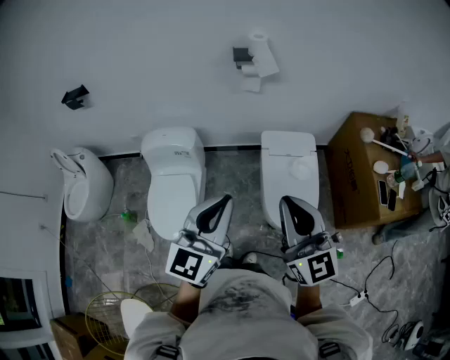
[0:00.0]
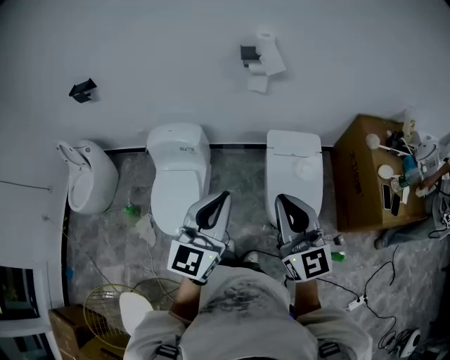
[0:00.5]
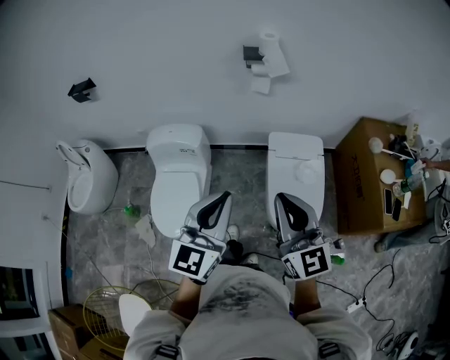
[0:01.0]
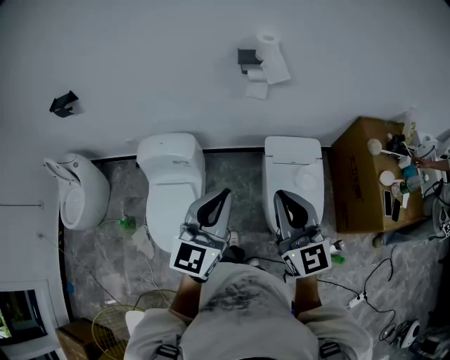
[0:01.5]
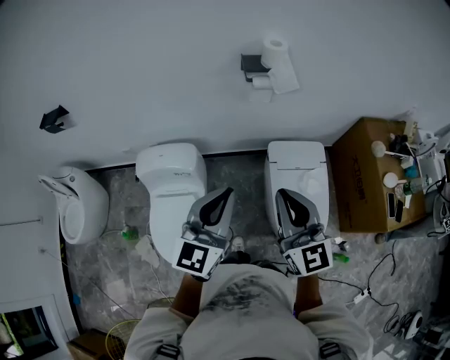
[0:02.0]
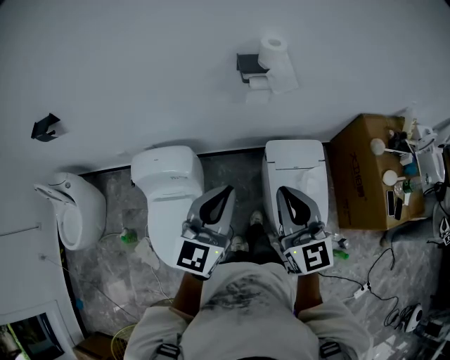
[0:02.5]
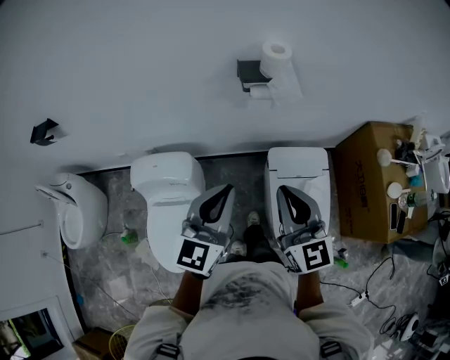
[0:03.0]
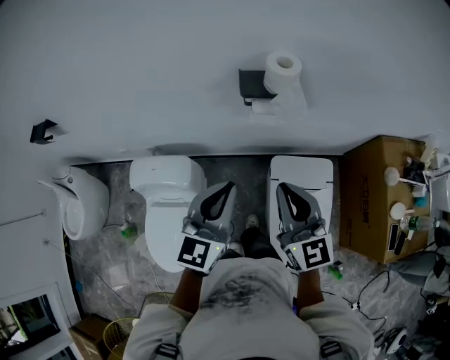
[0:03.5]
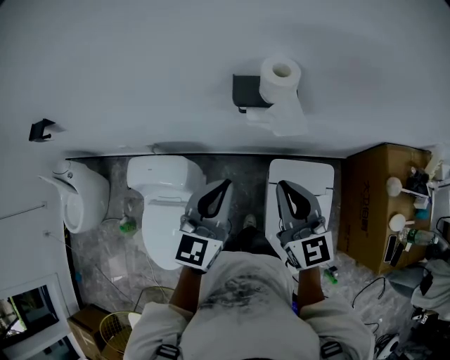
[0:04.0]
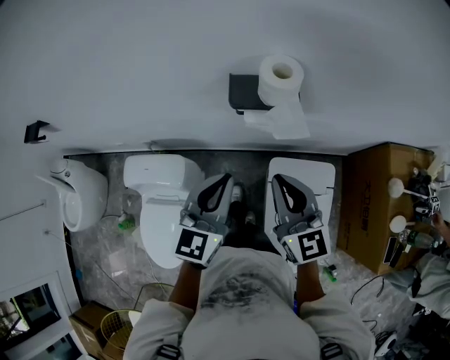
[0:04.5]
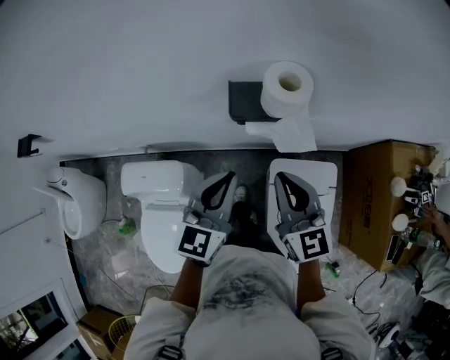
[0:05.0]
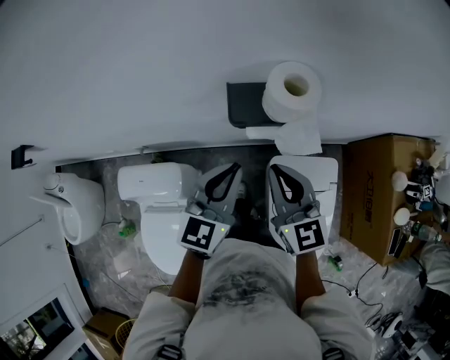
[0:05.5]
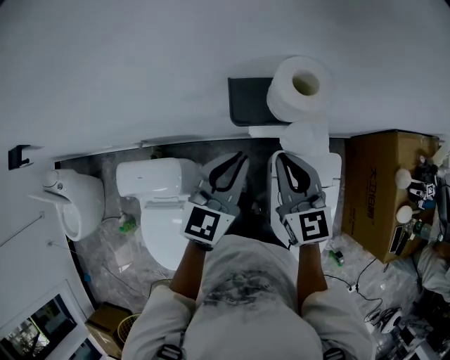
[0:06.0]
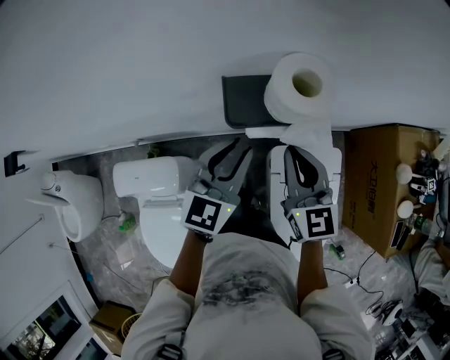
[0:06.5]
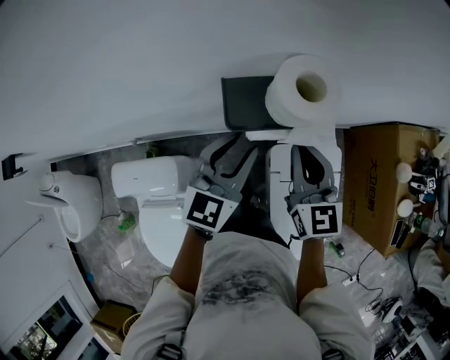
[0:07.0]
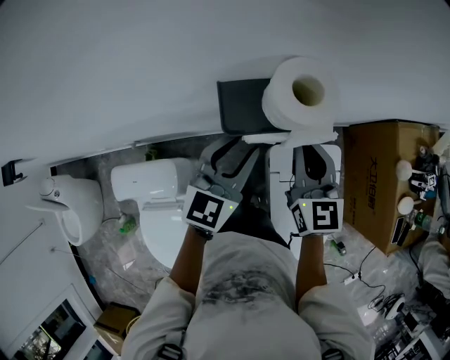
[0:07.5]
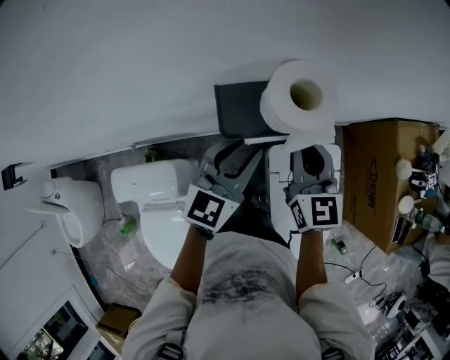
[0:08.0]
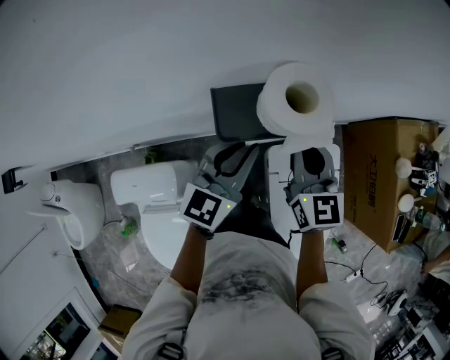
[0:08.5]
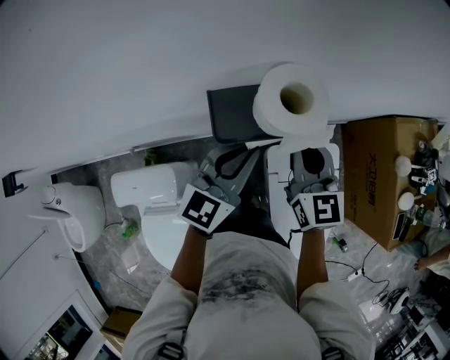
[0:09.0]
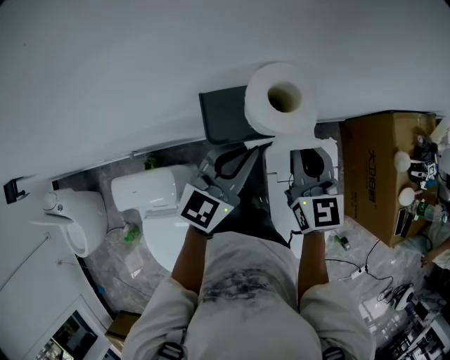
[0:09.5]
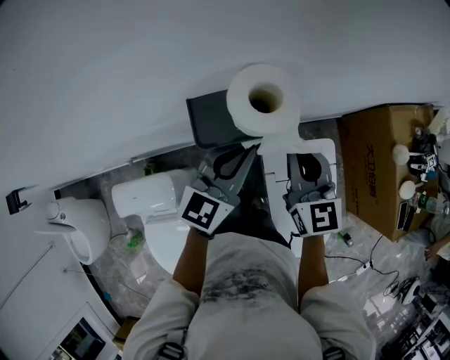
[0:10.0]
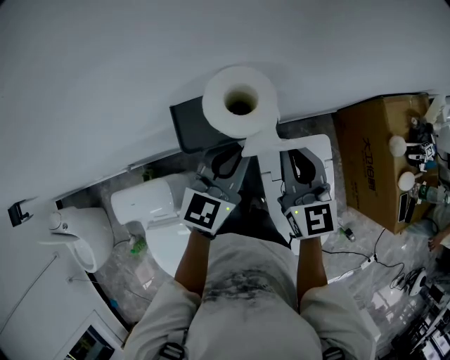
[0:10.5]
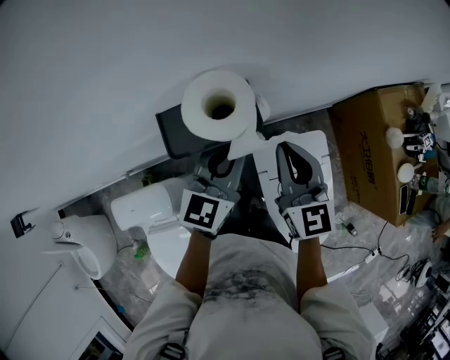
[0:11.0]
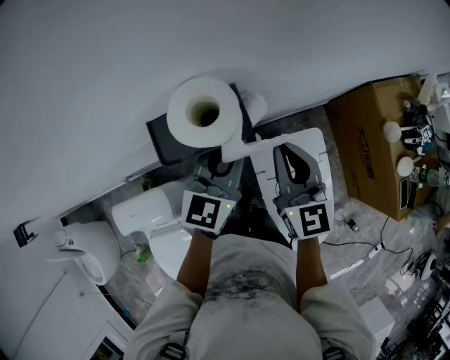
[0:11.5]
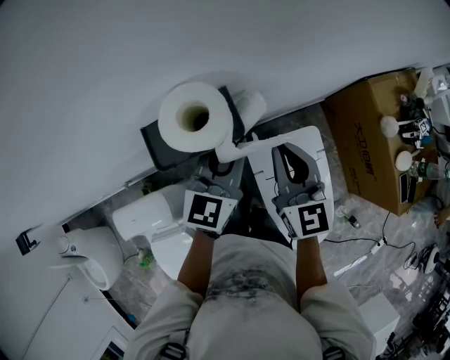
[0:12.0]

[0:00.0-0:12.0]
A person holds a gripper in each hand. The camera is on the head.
0:00.0 to 0:02.0: The grippers both shift forward by some 20 cm.
0:02.0 to 0:04.0: Both grippers move forward, some 25 cm.
0:04.0 to 0:06.0: Both grippers travel together forward and downward, some 15 cm.
0:06.0 to 0:08.0: Both grippers travel together forward, some 5 cm. The left gripper opens.
0:08.0 to 0:10.0: The left gripper closes.
0:10.0 to 0:12.0: The left gripper travels to the right by some 5 cm.

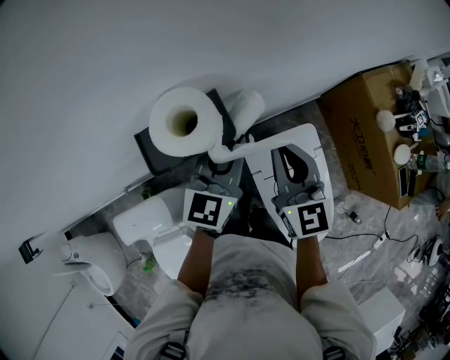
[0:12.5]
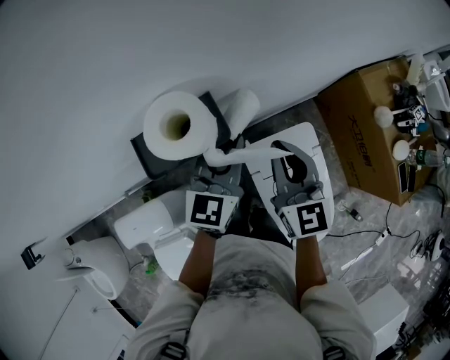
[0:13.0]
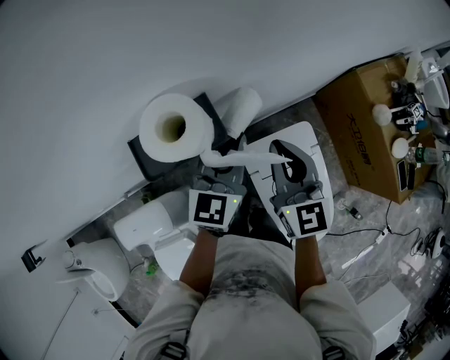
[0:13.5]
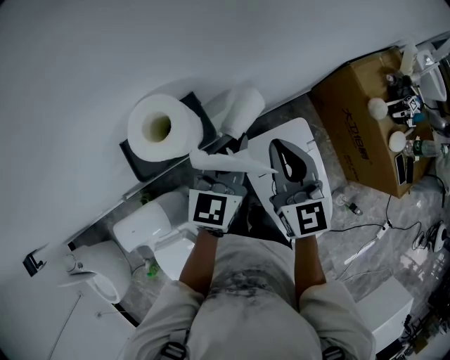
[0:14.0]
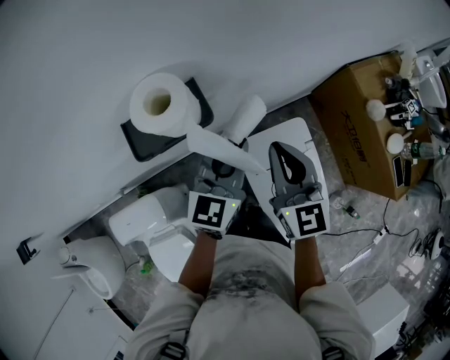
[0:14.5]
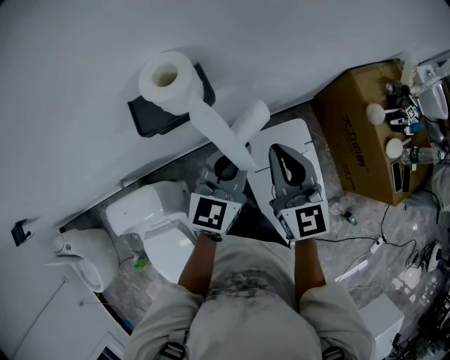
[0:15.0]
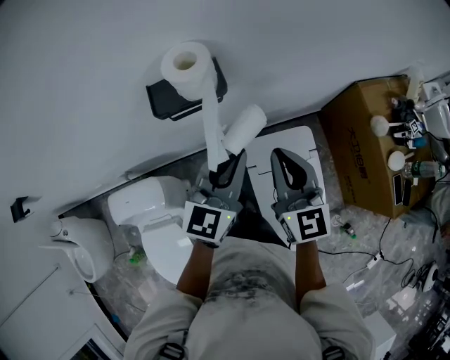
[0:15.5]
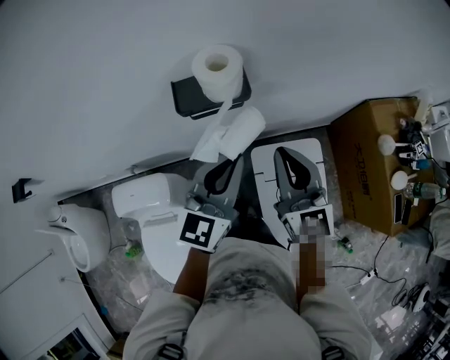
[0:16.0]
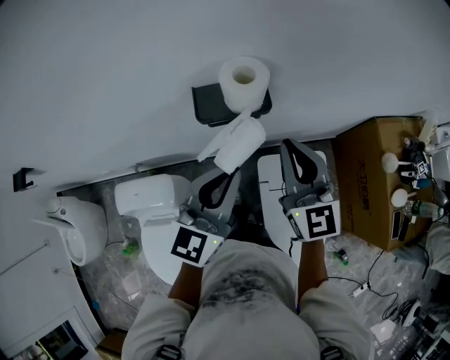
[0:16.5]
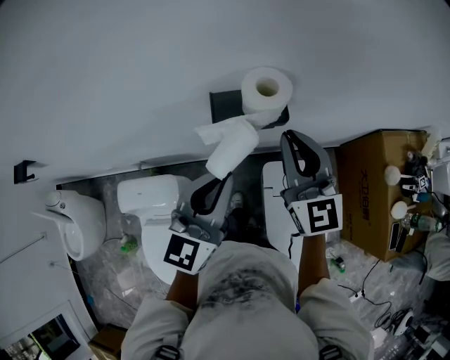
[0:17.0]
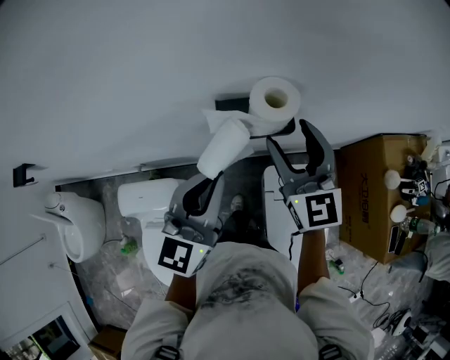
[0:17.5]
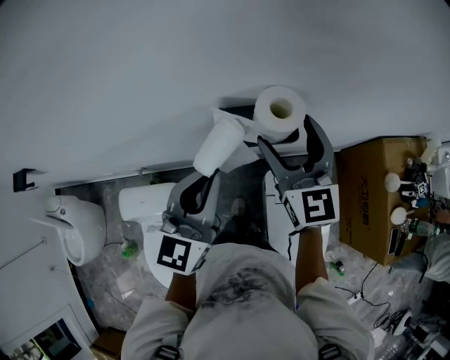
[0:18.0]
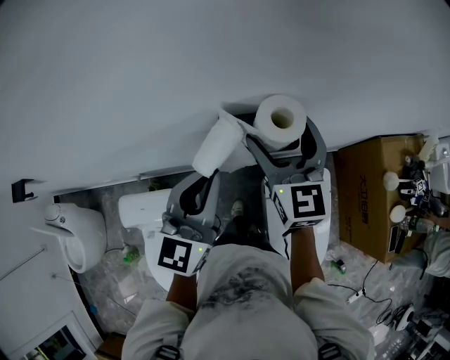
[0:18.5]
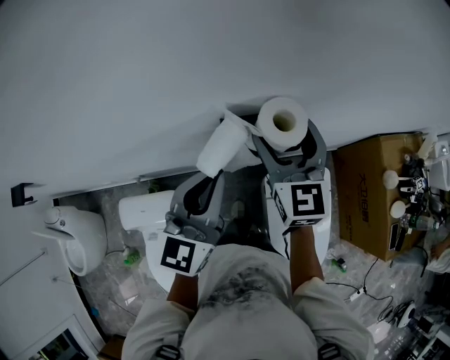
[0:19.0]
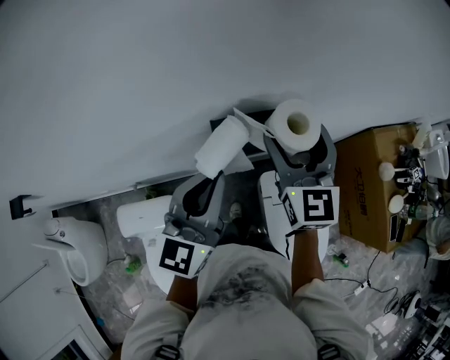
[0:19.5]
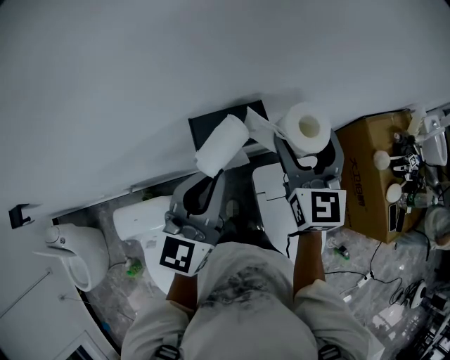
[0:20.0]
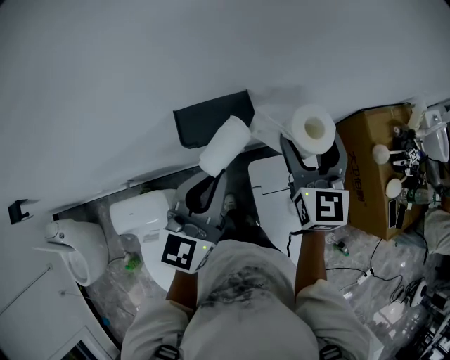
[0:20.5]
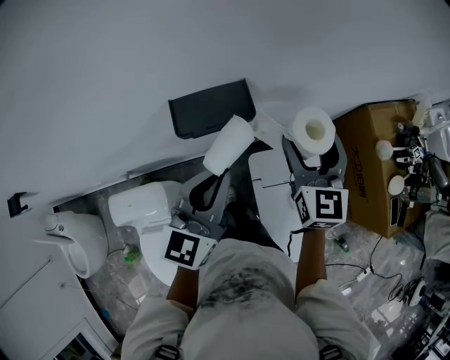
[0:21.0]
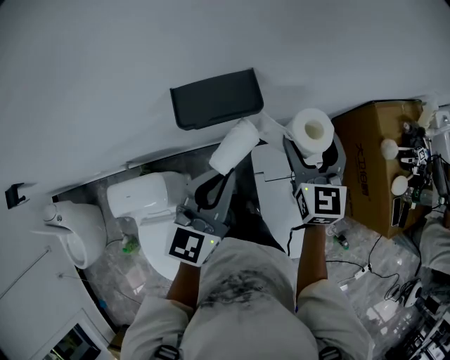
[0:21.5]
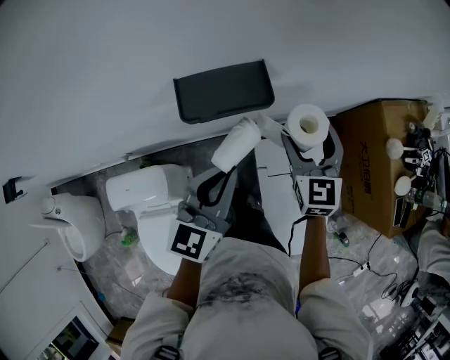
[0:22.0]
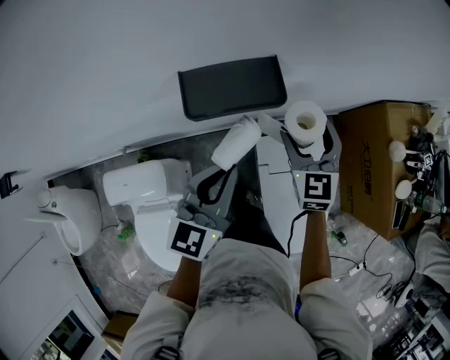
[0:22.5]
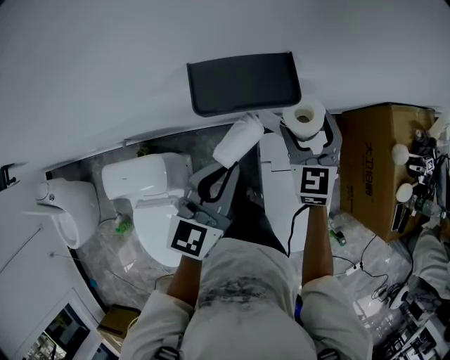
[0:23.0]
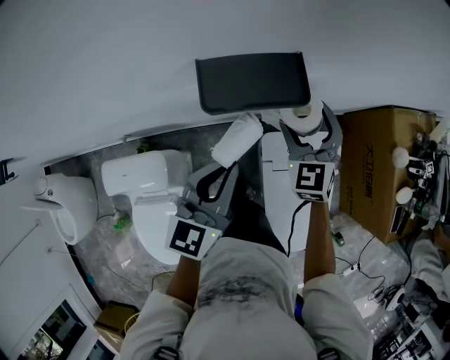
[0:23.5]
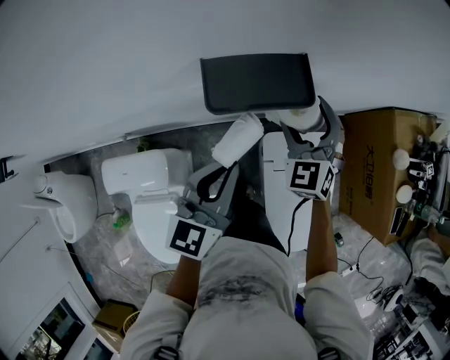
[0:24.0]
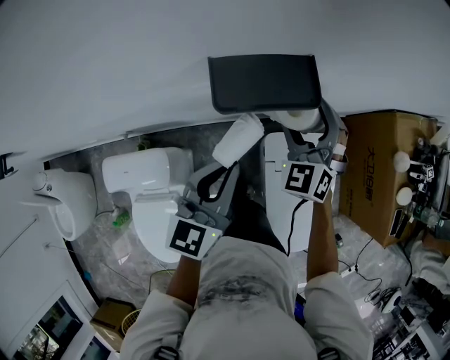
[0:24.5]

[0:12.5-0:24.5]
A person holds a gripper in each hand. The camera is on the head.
0:12.5 to 0:14.5: The right gripper changes place by some 5 cm. Meanwhile the left gripper changes place by roughly 5 cm.
0:14.5 to 0:16.5: The right gripper is displaced upward and to the left by approximately 10 cm, and swivels some 20 degrees. Meanwhile the left gripper shifts roughly 20 cm to the left, backward and upward.
0:16.5 to 0:18.5: The right gripper travels forward and to the left by about 15 cm, and opens up, while the left gripper is displaced to the left and forward by some 10 cm.
0:18.5 to 0:20.5: The left gripper heads to the right, covering about 10 cm. The right gripper goes approximately 15 cm to the right.
0:20.5 to 0:22.5: Both grippers travel together downward, about 15 cm.
0:22.5 to 0:24.5: The right gripper moves to the left, approximately 5 cm, and swivels roughly 30 degrees.

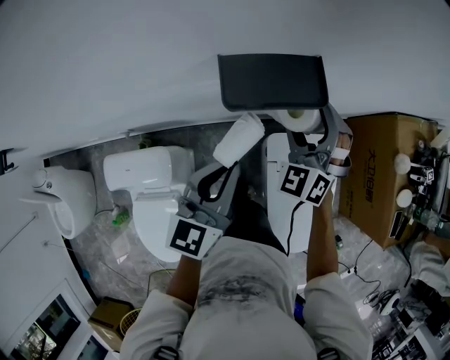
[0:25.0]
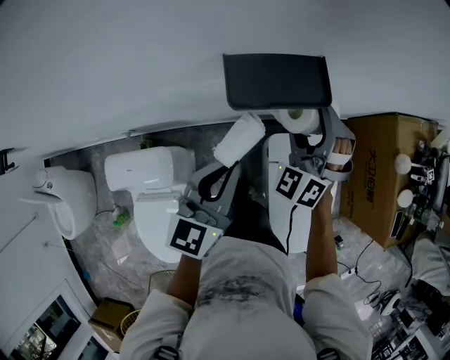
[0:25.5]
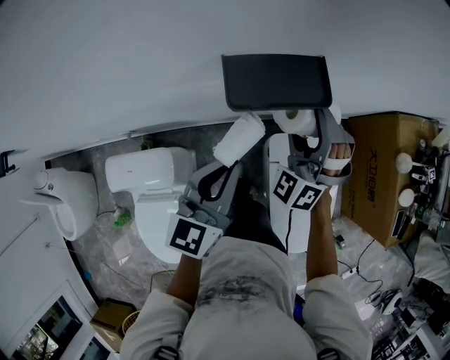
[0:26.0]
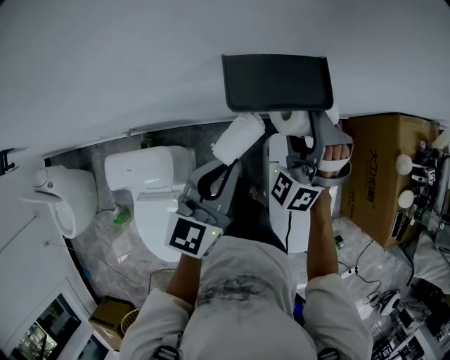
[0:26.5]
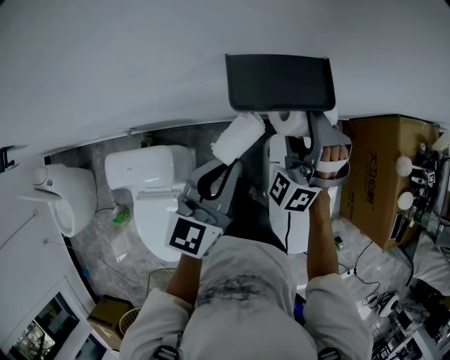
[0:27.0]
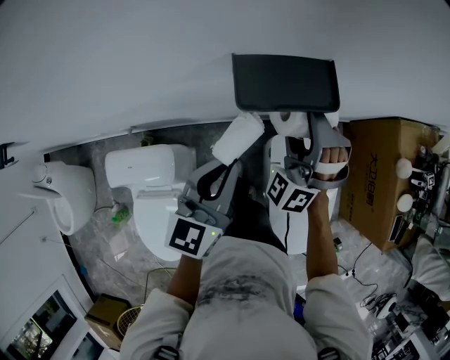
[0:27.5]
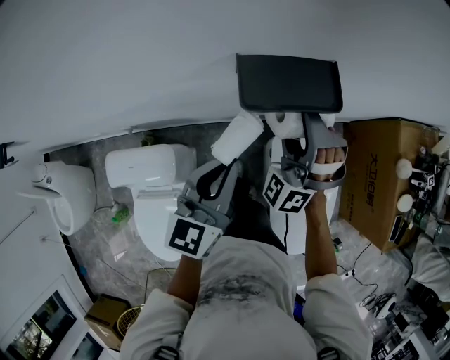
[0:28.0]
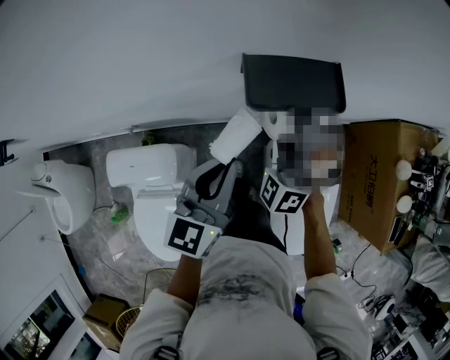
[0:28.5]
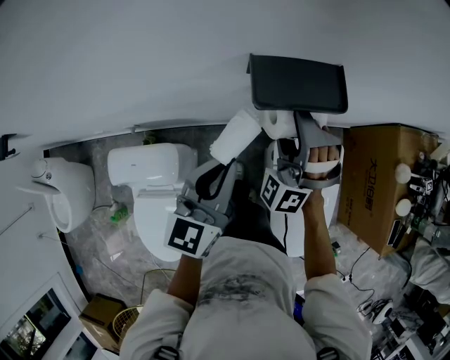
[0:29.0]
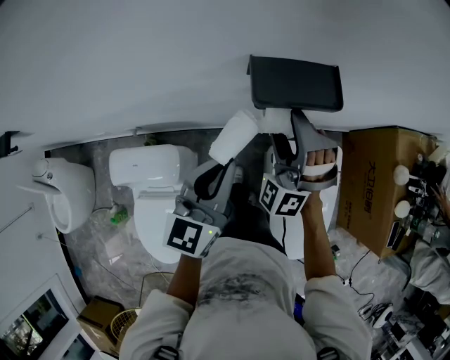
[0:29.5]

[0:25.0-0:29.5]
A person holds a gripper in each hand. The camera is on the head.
0:25.0 to 0:27.0: The right gripper rotates roughly 20 degrees.
0:27.0 to 0:29.5: The right gripper travels to the left by some 5 cm.
